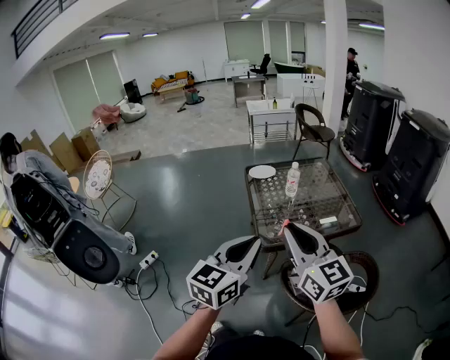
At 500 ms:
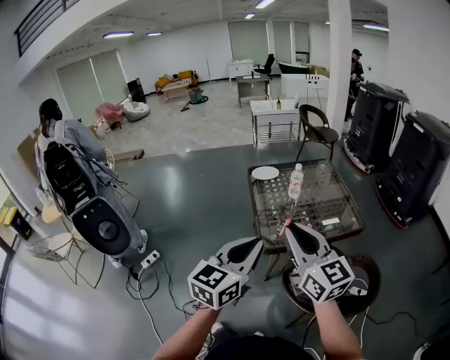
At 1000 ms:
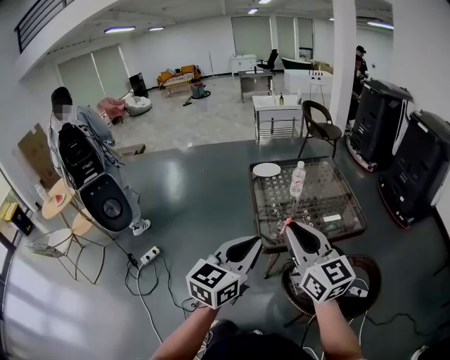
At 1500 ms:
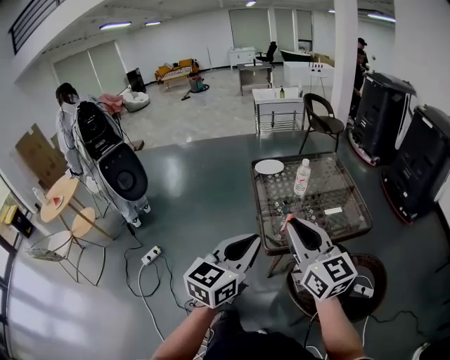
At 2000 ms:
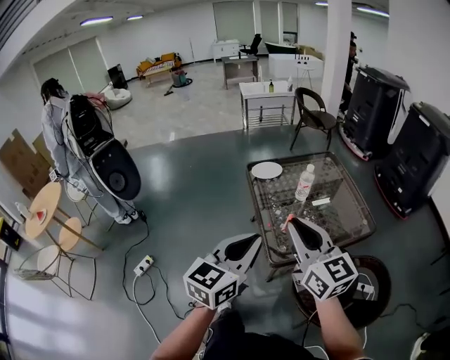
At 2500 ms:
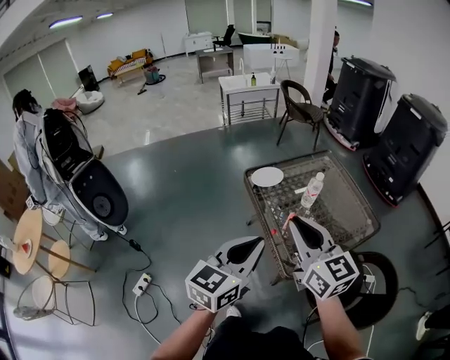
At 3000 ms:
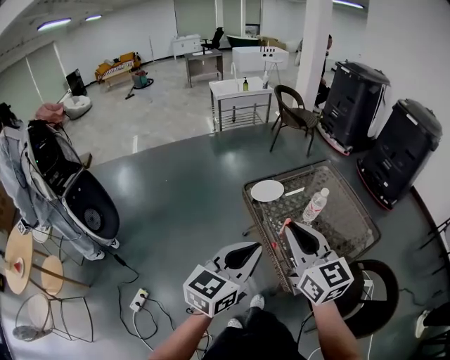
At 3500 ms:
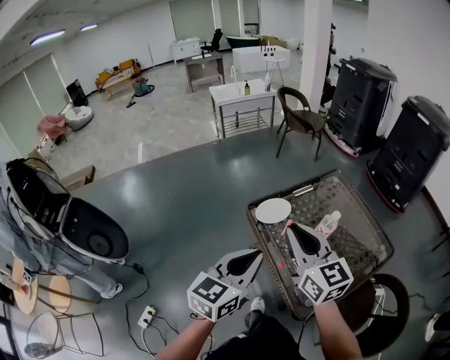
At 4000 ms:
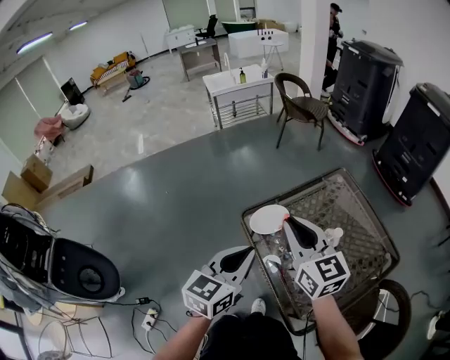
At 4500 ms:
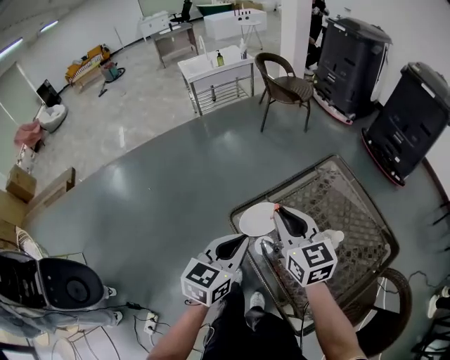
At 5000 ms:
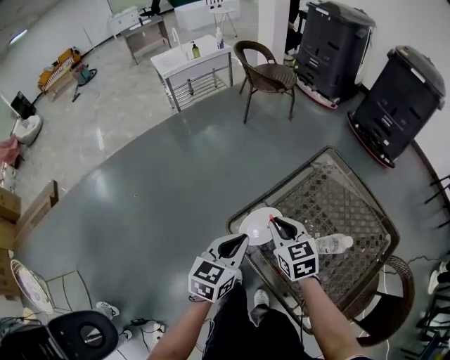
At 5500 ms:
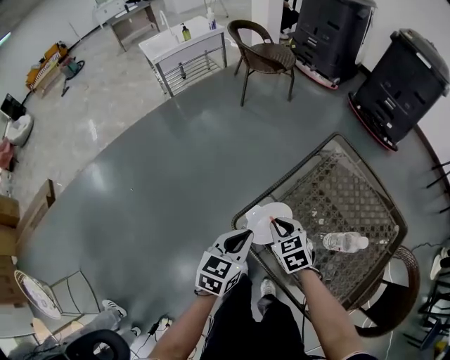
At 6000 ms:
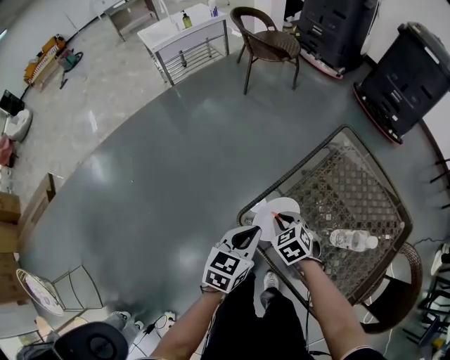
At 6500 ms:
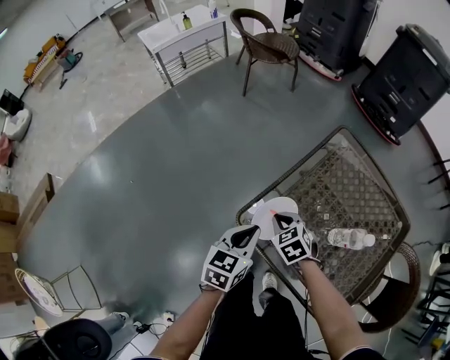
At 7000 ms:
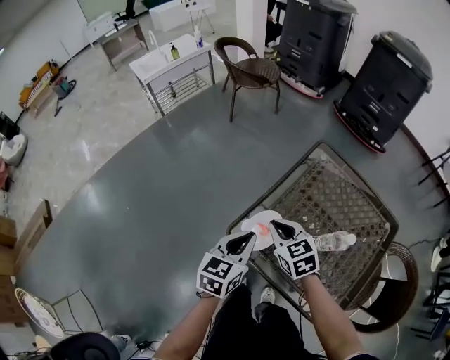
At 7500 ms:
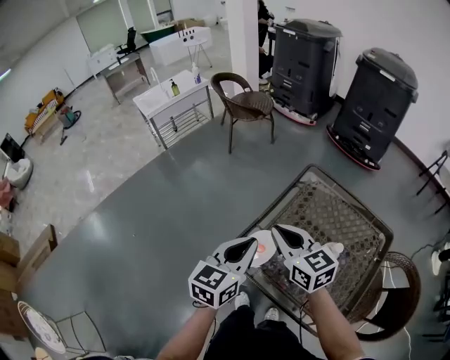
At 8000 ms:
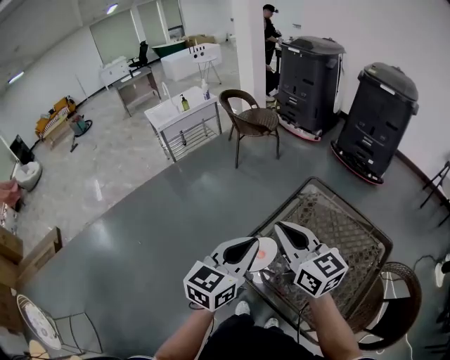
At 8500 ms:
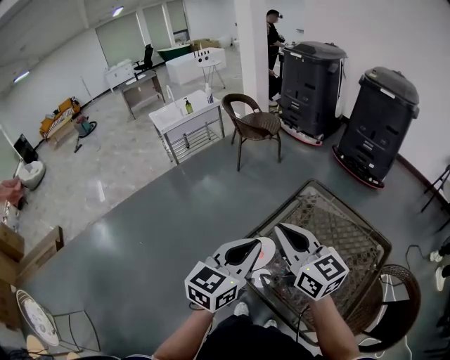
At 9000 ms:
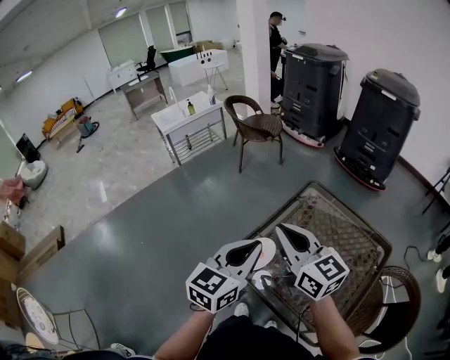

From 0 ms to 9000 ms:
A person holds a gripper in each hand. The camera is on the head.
From 0 ms to 2000 ms: The right gripper shifts roughly 15 cm forward. The left gripper moves forward and to the left, approximately 15 cm.
From 2000 ms to 4500 ms: The pair of grippers is taken forward, approximately 50 cm. The right gripper rotates about 30 degrees; the left gripper rotates about 20 degrees.
From 4500 ms to 7000 ms: The left gripper moves forward and downward, roughly 10 cm; the right gripper shifts roughly 15 cm downward, and swivels some 20 degrees.
From 7000 ms to 9000 ms: The grippers both shift upward by about 20 cm. The right gripper points its fingers some 40 degrees further upward.

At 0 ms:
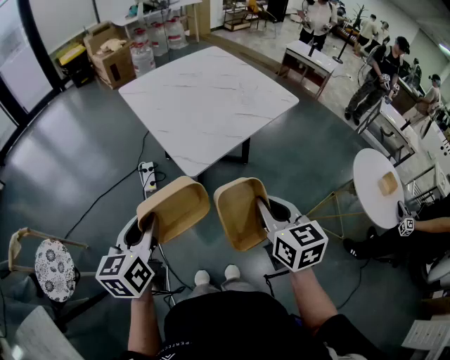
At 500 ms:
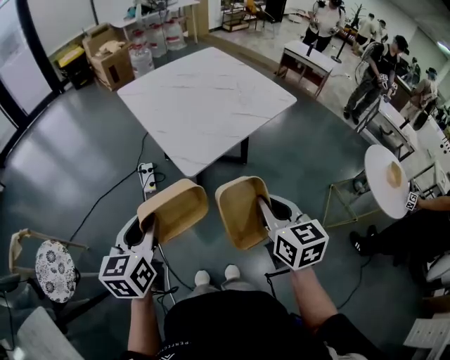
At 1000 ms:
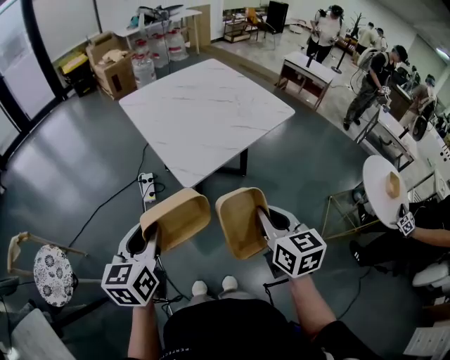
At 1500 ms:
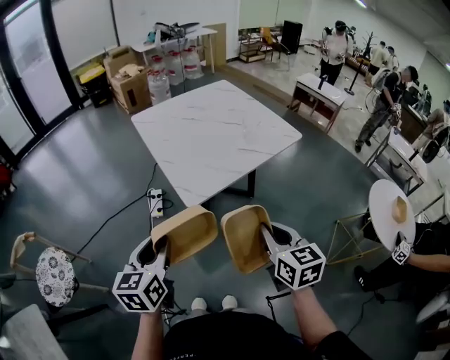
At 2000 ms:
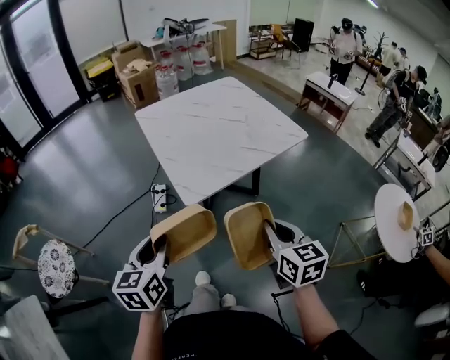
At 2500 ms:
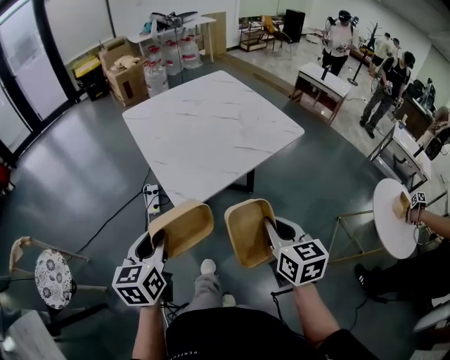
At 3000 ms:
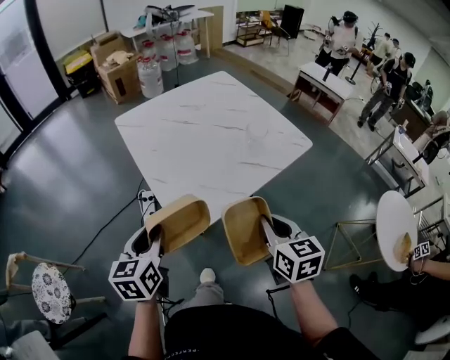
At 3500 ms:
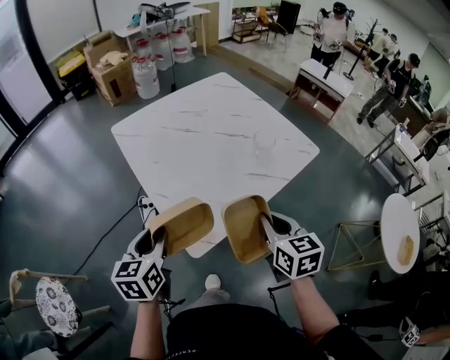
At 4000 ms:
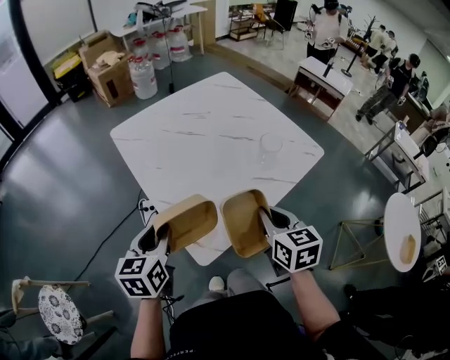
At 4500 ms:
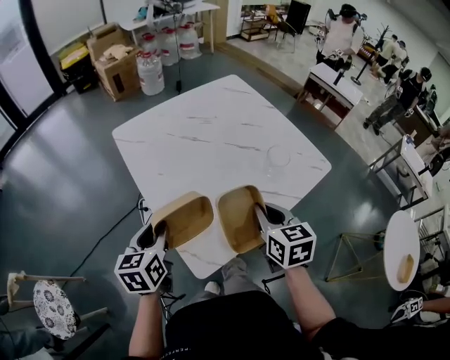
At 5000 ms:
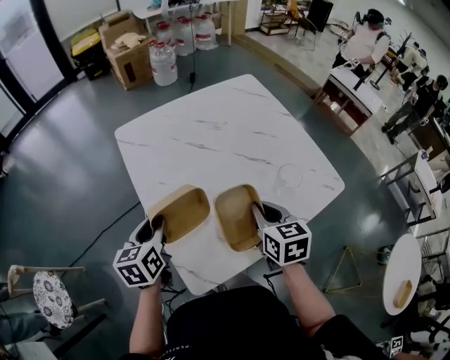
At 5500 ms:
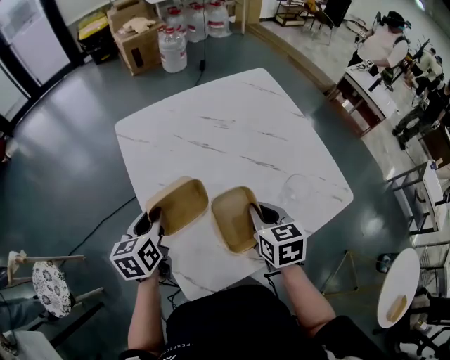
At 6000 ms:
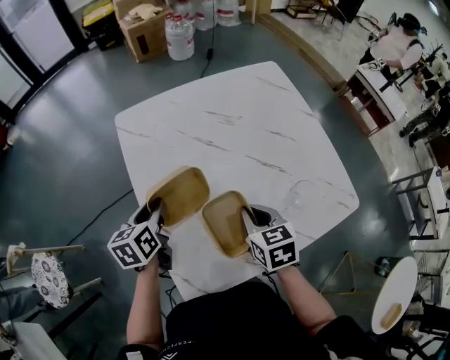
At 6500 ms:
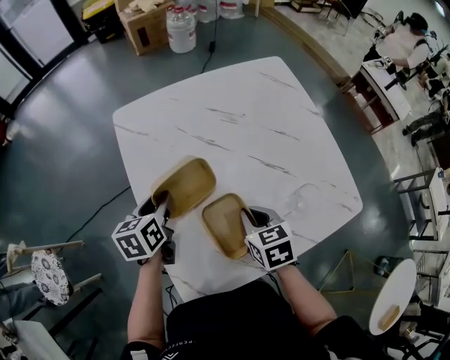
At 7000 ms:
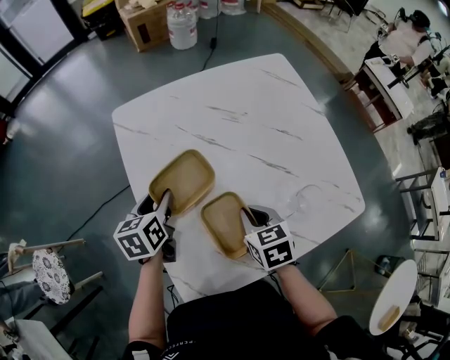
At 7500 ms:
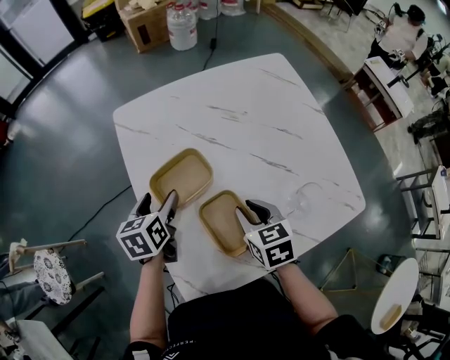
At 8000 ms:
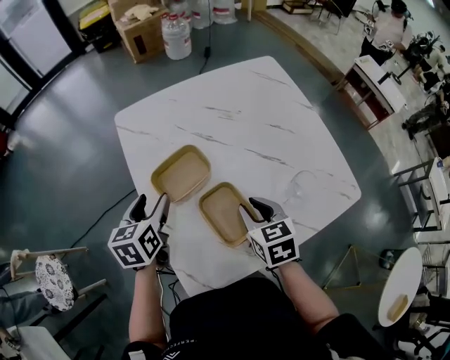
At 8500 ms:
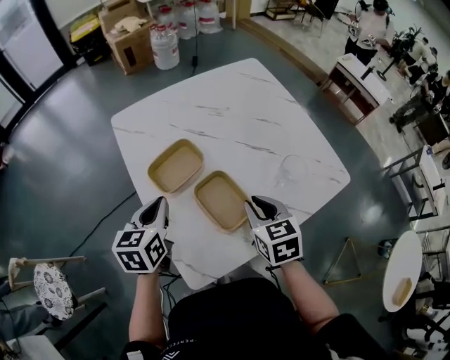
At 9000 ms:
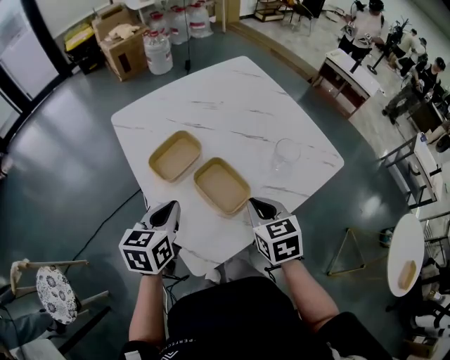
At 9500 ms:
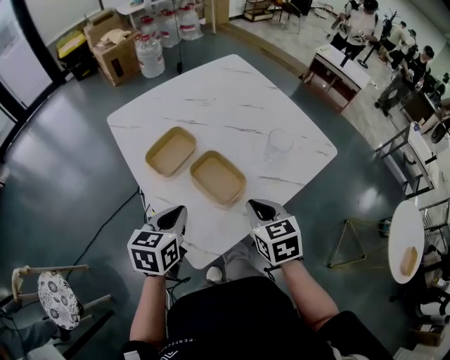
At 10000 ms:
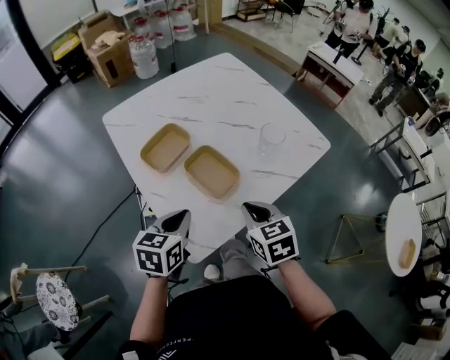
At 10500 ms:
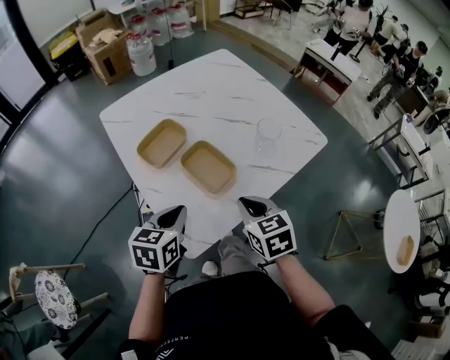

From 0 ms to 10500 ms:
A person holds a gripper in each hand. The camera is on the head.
From 0 ms to 2000 ms: The two grippers go roughly 10 cm to the right.
From 2000 ms to 4000 ms: Both grippers move forward, about 30 cm.
From 4000 ms to 6500 ms: The right gripper is displaced forward and downward by about 25 cm, and rotates some 30 degrees; the left gripper shifts roughly 25 cm forward, and swivels roughly 30 degrees.
From 6500 ms to 8500 ms: The grippers both shift backward and upward by approximately 10 cm. The left gripper closes up.
From 8500 ms to 10500 ms: The left gripper heads backward and to the right, covering approximately 15 cm, and changes its angle by roughly 20 degrees. Meanwhile the right gripper moves backward, roughly 10 cm.

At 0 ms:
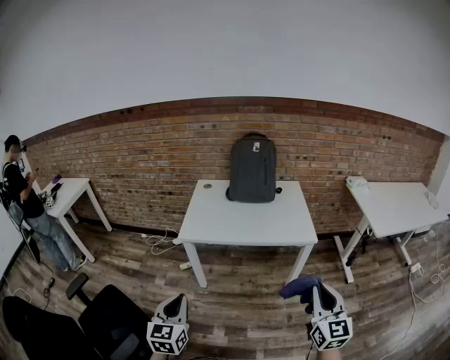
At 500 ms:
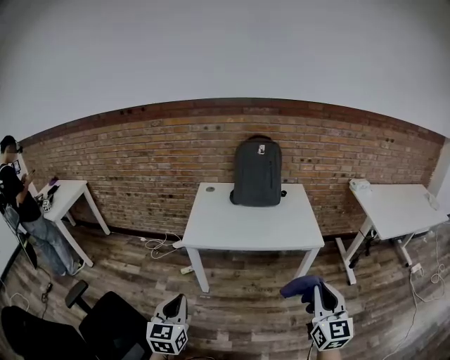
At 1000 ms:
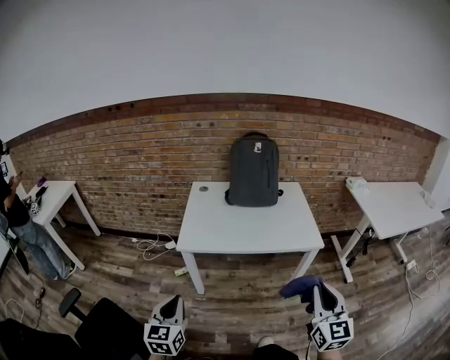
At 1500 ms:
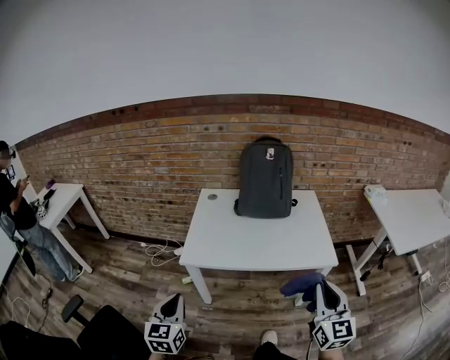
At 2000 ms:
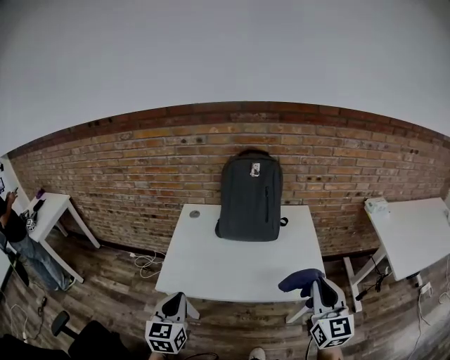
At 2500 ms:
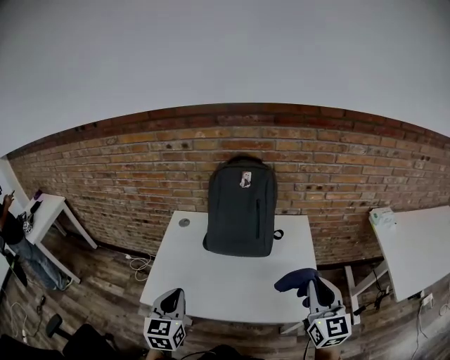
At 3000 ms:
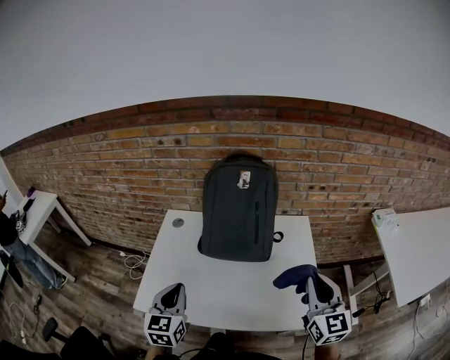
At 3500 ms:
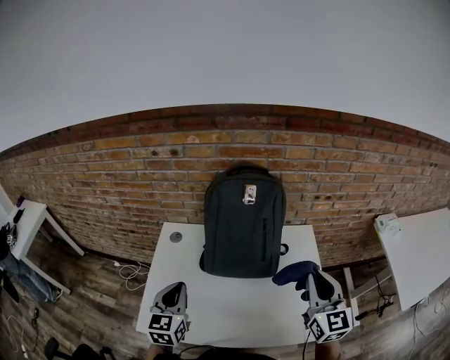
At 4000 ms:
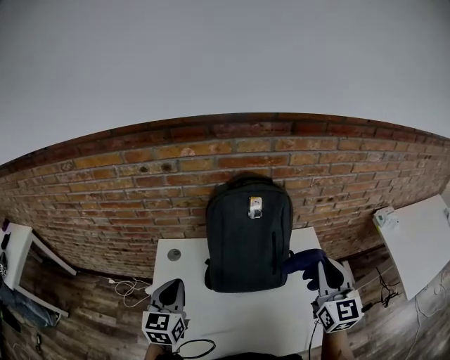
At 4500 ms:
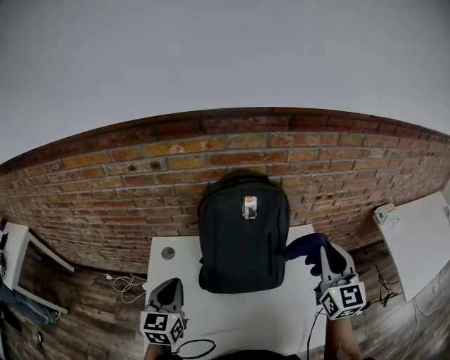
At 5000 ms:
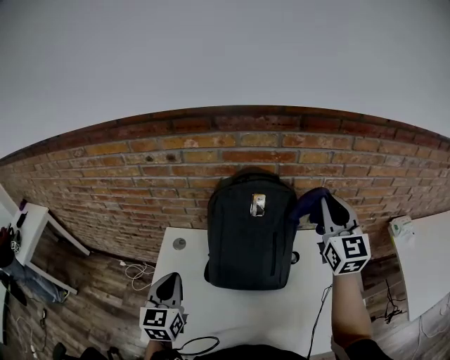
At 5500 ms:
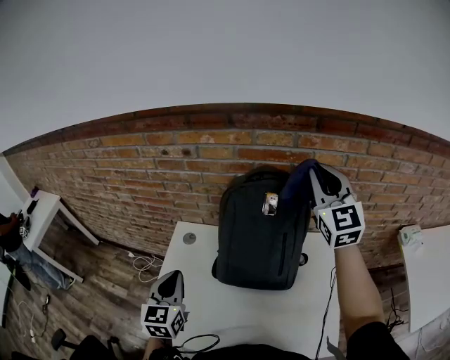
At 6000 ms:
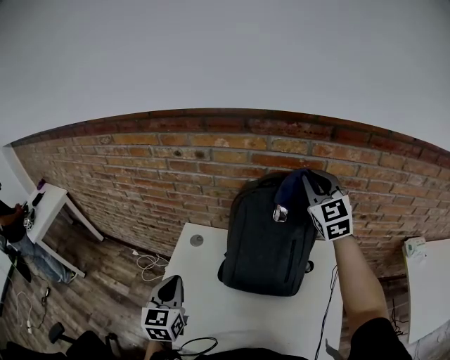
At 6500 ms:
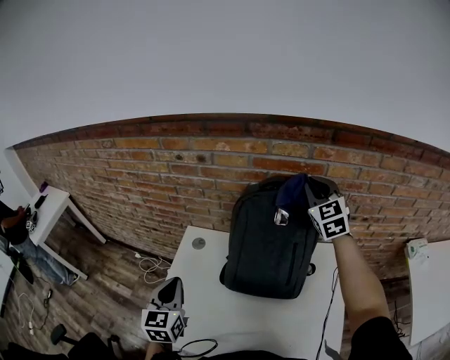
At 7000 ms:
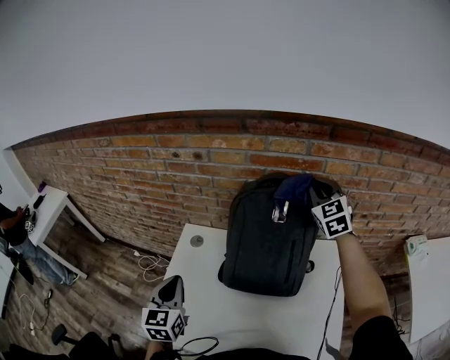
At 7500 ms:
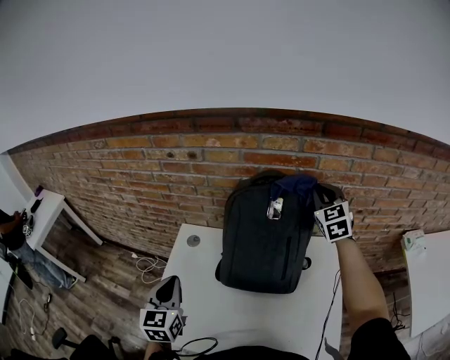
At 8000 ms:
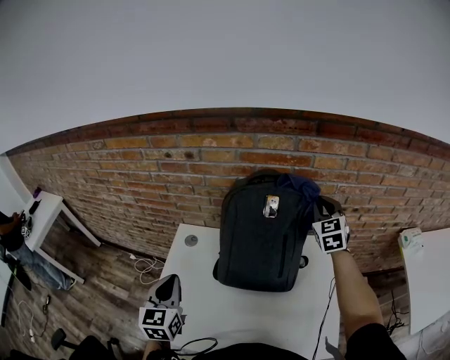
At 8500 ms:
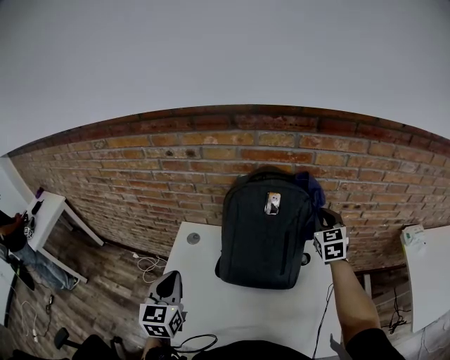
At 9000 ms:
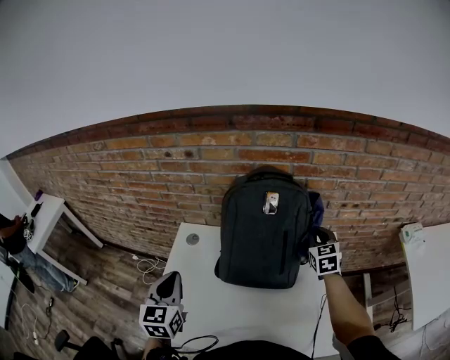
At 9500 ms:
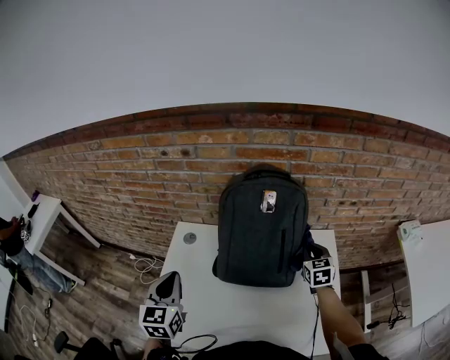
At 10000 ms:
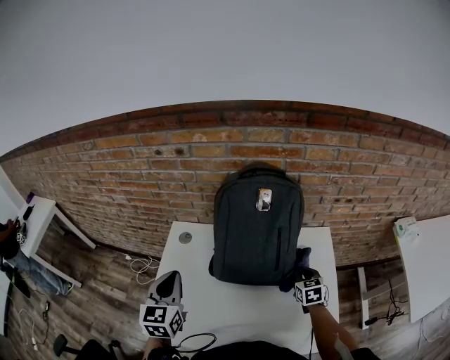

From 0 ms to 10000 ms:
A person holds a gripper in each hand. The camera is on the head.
From 0 ms to 2000 ms: The grippers both shift forward by some 35 cm.
From 2000 ms to 4000 ms: Both grippers move forward, roughly 35 cm.
From 4000 ms to 6000 ms: The right gripper shifts some 25 cm forward, and changes its angle by about 30 degrees.
From 6000 ms to 8000 ms: The right gripper heads downward and to the right, covering roughly 15 cm.
From 8000 ms to 10000 ms: The right gripper shifts some 30 cm downward and backward, and changes its angle by about 30 degrees.
